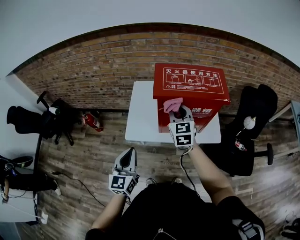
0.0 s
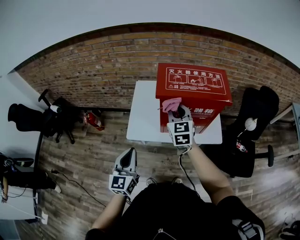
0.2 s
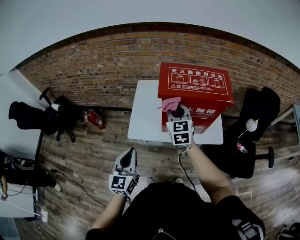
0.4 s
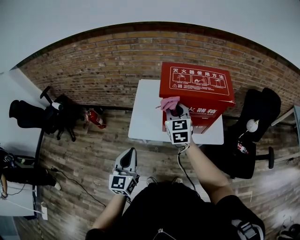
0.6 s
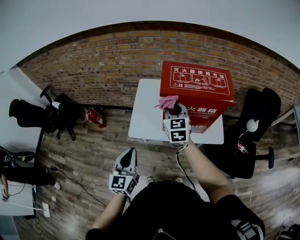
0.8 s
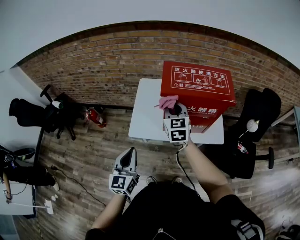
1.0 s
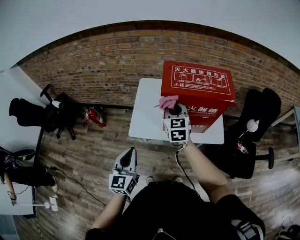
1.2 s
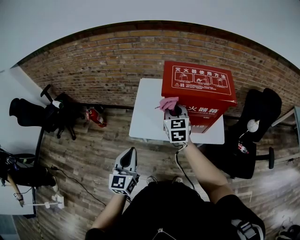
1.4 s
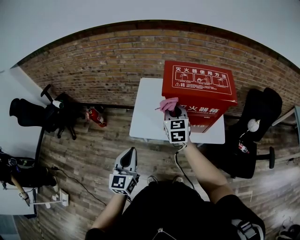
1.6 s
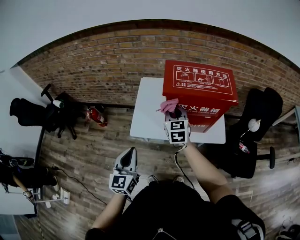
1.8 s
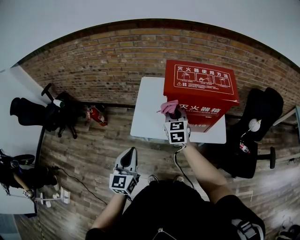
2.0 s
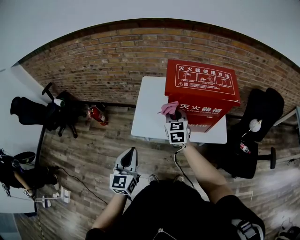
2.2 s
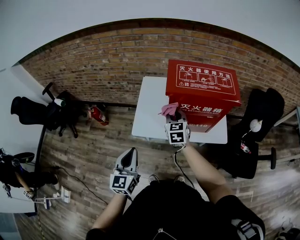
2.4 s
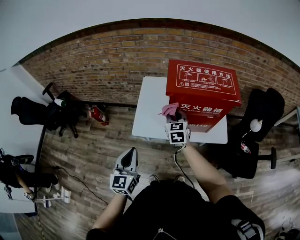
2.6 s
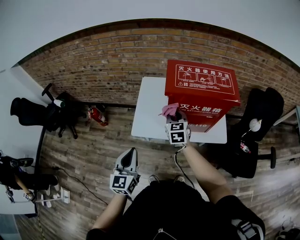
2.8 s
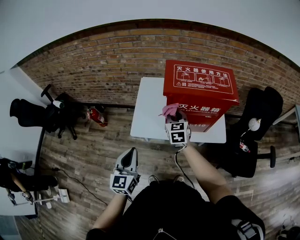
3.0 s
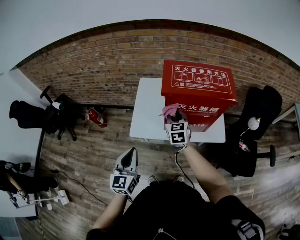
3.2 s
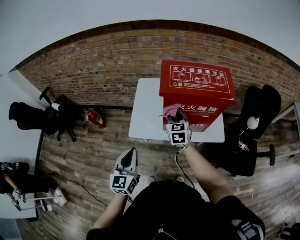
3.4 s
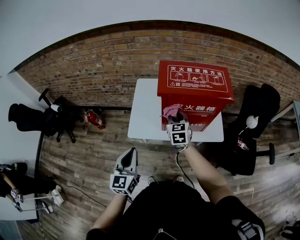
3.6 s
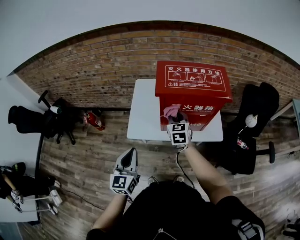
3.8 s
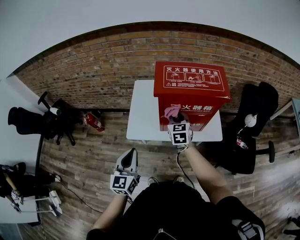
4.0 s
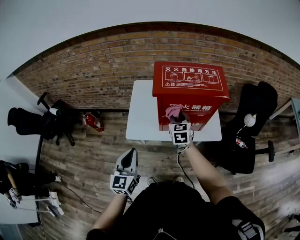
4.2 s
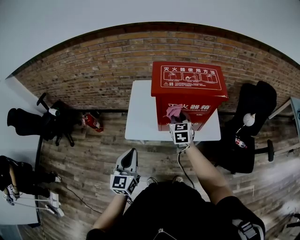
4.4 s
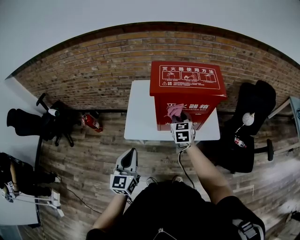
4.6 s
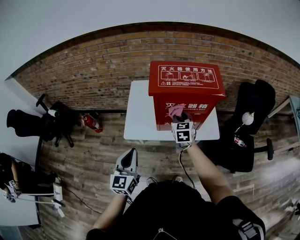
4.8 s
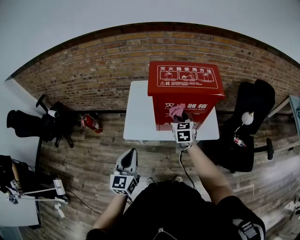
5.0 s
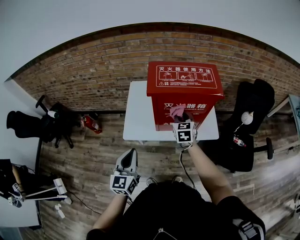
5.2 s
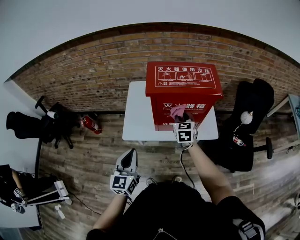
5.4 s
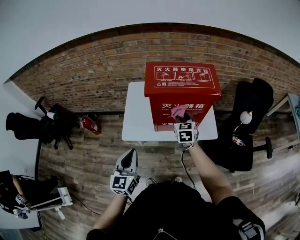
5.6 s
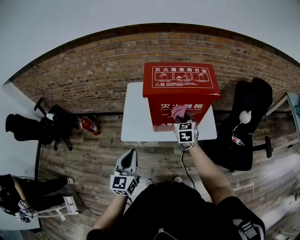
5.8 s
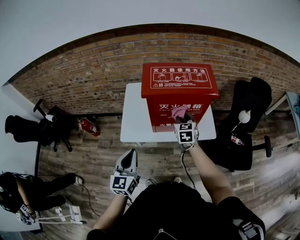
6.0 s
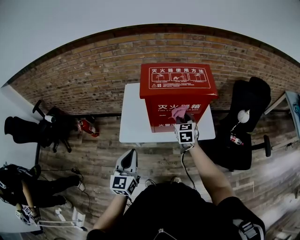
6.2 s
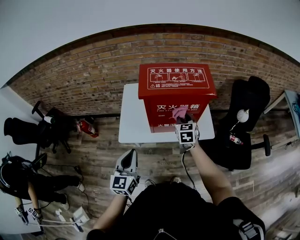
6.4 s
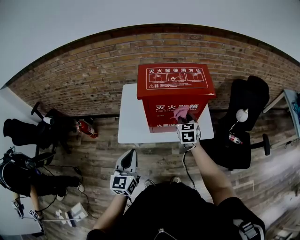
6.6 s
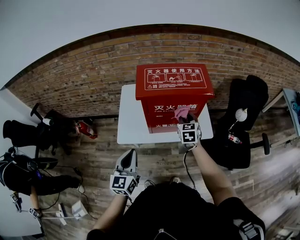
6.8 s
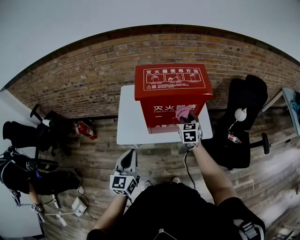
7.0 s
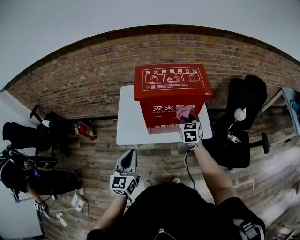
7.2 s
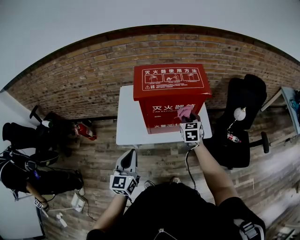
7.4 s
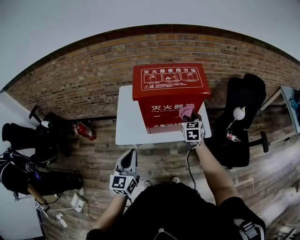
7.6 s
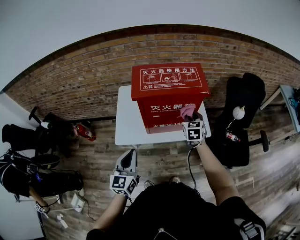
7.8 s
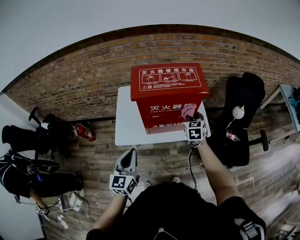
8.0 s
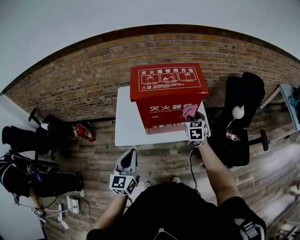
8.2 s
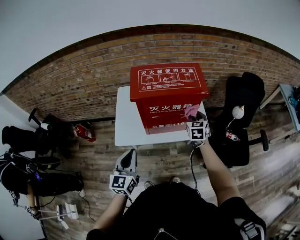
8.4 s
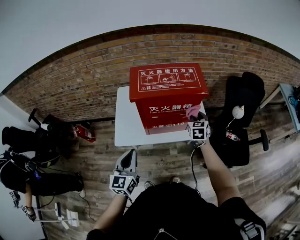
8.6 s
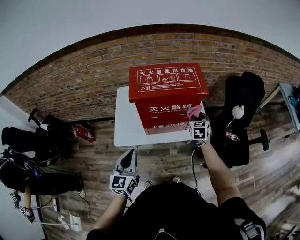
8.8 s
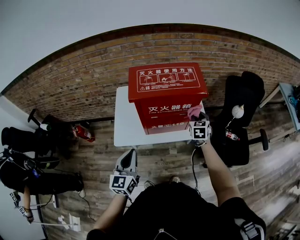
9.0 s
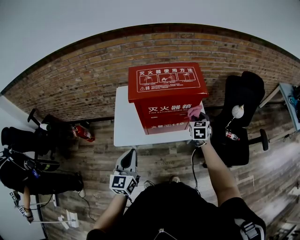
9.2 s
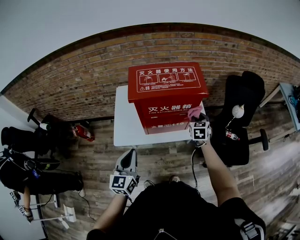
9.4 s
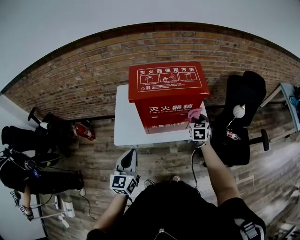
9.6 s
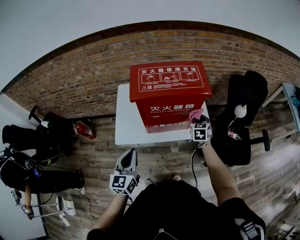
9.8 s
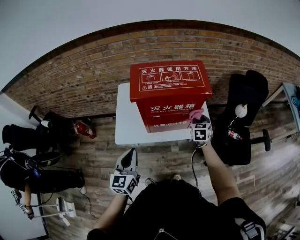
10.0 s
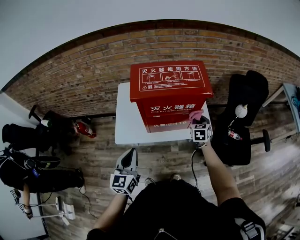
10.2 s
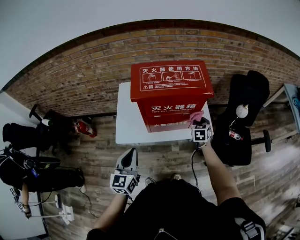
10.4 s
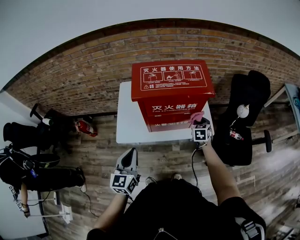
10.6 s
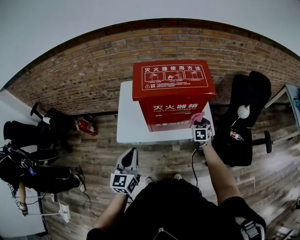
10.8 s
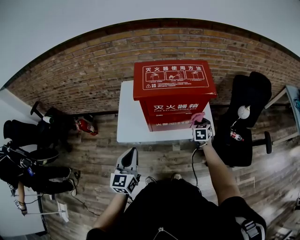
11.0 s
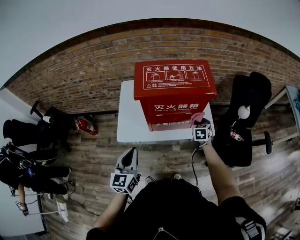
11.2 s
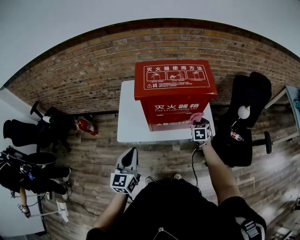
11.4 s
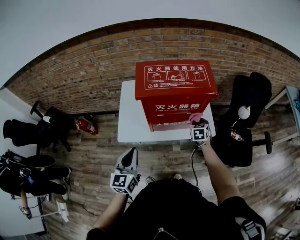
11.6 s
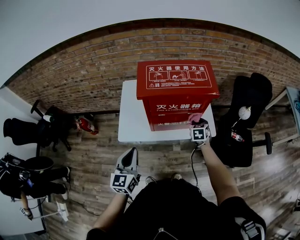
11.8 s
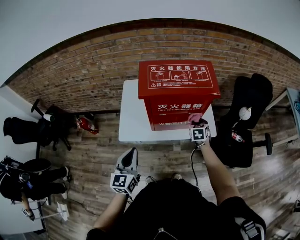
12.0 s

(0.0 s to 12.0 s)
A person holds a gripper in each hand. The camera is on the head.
0.0 s - 1.6 s: The right gripper moves to the left, about 5 cm.
1.6 s - 3.0 s: The right gripper travels downward by roughly 5 cm.
3.0 s - 4.4 s: The right gripper moves to the right, about 5 cm.
4.4 s - 6.0 s: The right gripper heads to the right, covering some 5 cm.
6.0 s - 7.6 s: The right gripper heads to the right, covering some 10 cm.
7.6 s - 9.0 s: The right gripper goes roughly 5 cm to the right.
9.0 s - 10.4 s: The right gripper shifts about 10 cm downward.
10.4 s - 12.0 s: The grippers make only small movements.

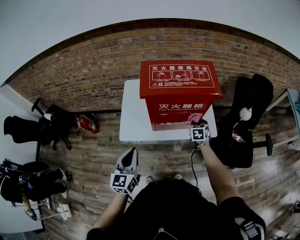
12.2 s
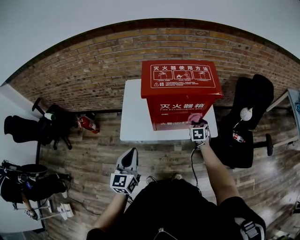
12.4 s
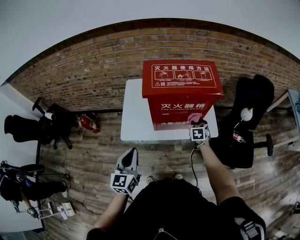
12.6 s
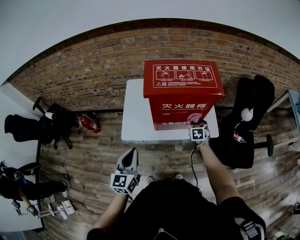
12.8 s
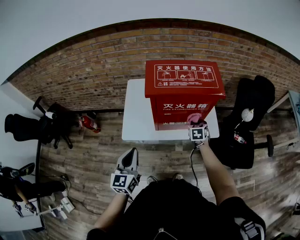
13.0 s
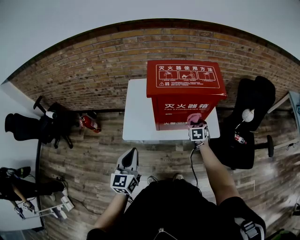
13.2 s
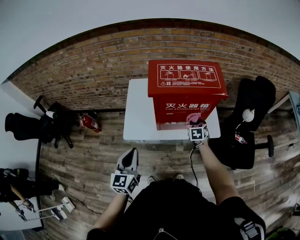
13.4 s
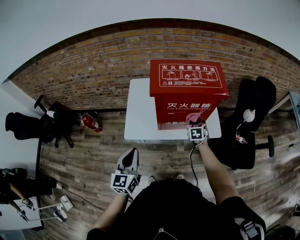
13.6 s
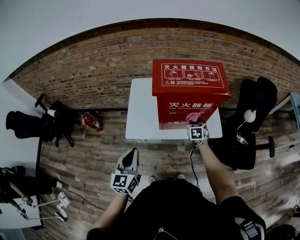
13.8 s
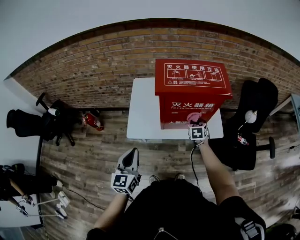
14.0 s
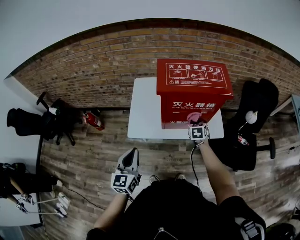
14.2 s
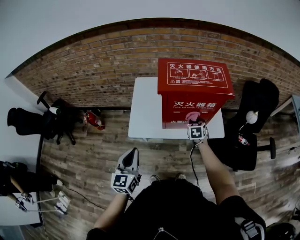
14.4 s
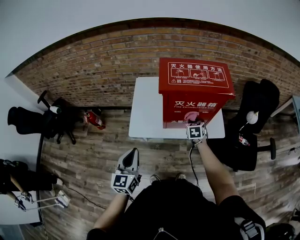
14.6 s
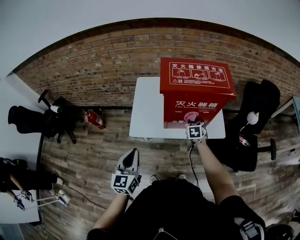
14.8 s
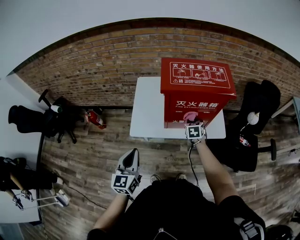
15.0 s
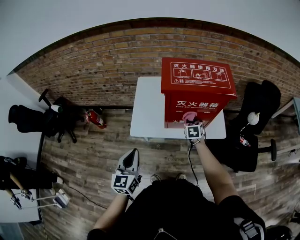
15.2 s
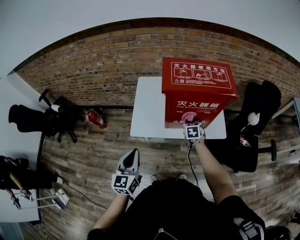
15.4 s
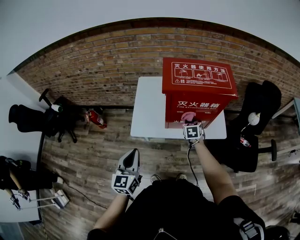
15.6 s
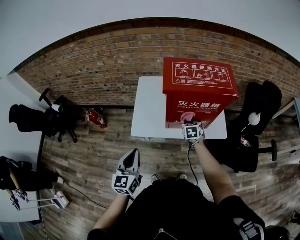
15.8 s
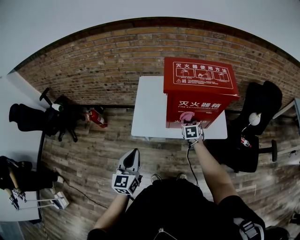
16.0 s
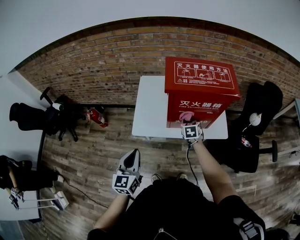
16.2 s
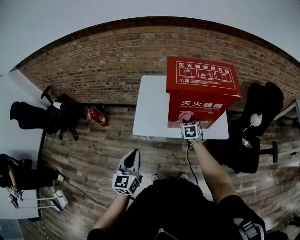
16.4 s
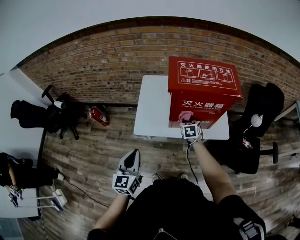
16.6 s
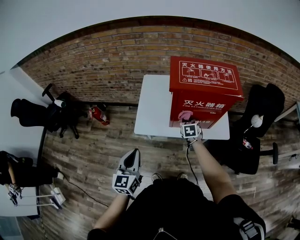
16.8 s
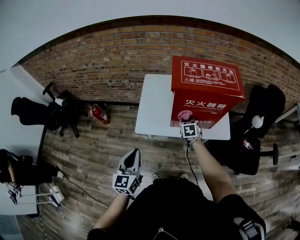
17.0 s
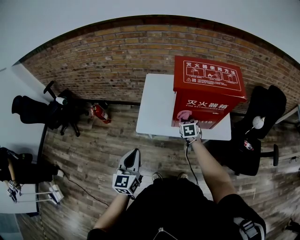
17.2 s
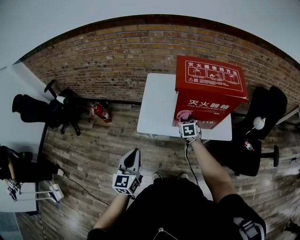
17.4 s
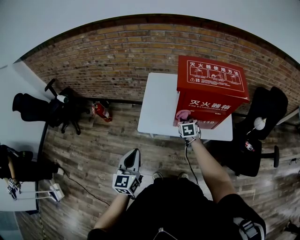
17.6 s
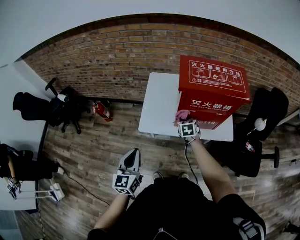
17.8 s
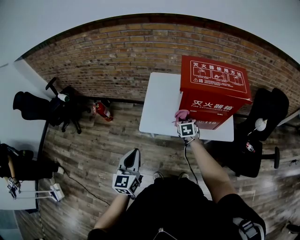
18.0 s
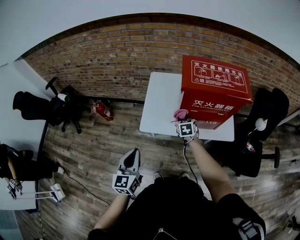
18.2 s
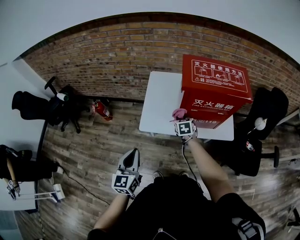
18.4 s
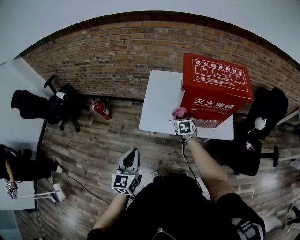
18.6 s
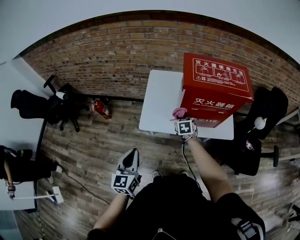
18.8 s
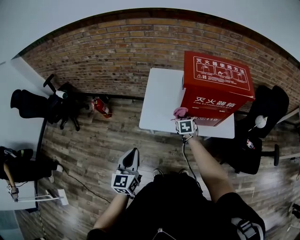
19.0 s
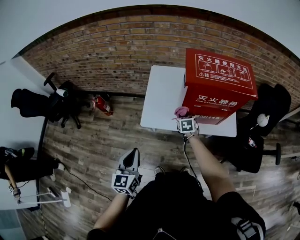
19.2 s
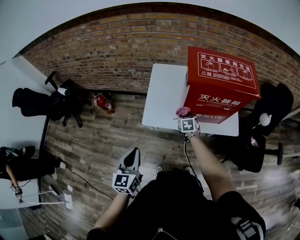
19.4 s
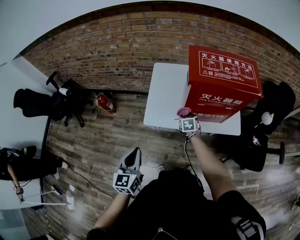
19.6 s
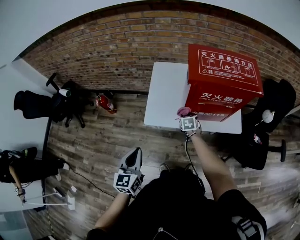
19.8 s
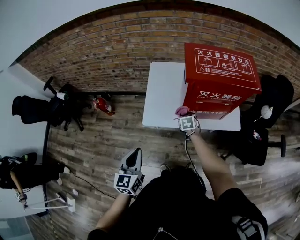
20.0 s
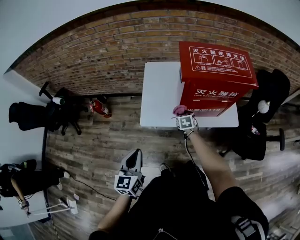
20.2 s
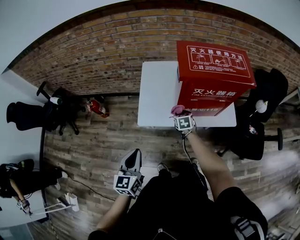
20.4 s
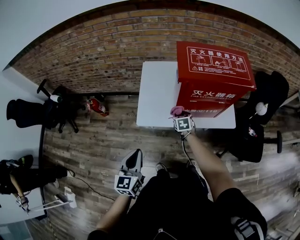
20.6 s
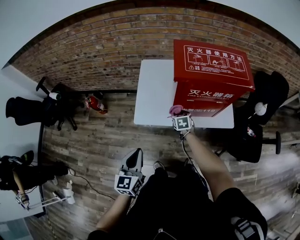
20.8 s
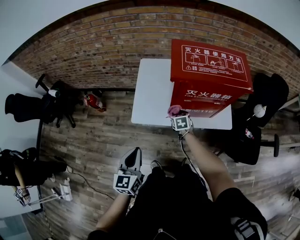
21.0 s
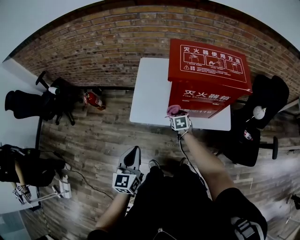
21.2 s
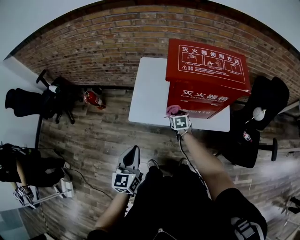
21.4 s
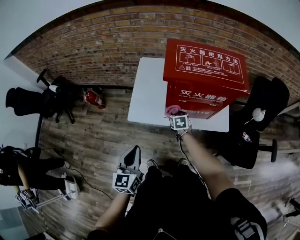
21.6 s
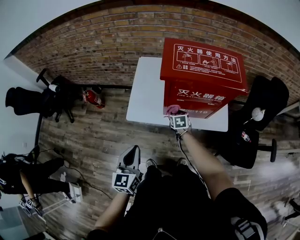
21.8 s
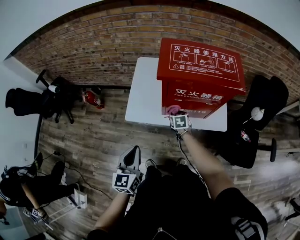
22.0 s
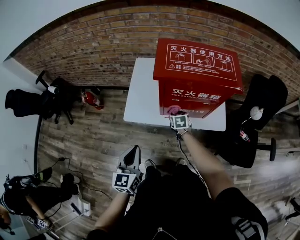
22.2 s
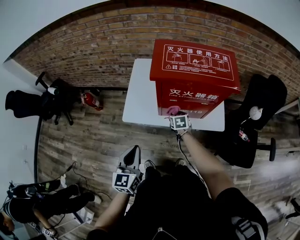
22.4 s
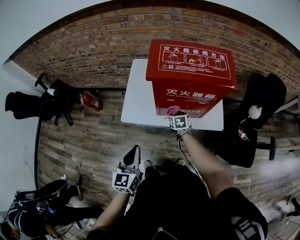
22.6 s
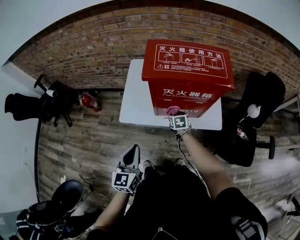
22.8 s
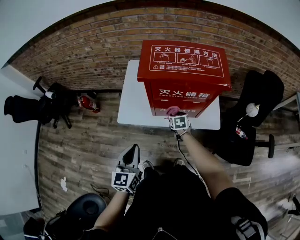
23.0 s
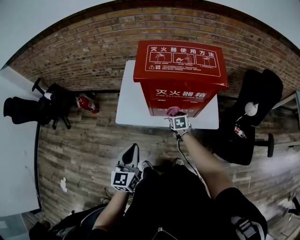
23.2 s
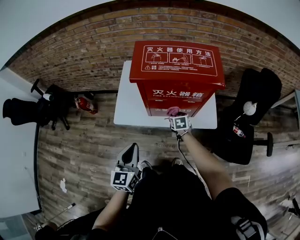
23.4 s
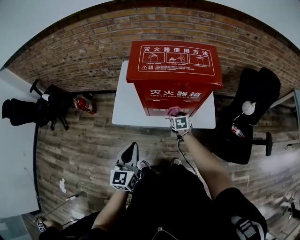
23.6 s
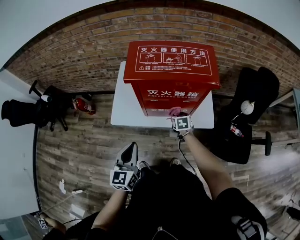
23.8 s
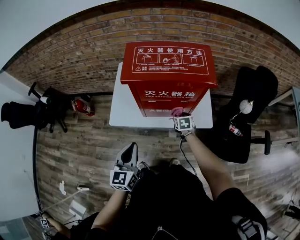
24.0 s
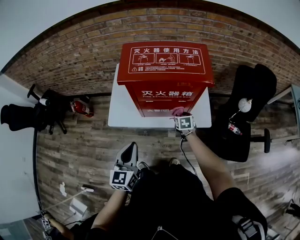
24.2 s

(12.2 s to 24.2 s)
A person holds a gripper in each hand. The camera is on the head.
12.2 s - 13.8 s: The right gripper is displaced to the left by approximately 5 cm.
13.8 s - 15.2 s: The right gripper goes roughly 5 cm to the left.
15.2 s - 16.6 s: The right gripper is displaced to the left by roughly 5 cm.
16.6 s - 18.2 s: The right gripper is displaced to the left by approximately 10 cm.
18.2 s - 19.8 s: The right gripper travels downward by roughly 10 cm.
19.8 s - 21.2 s: The left gripper shifts approximately 5 cm to the right.
21.2 s - 22.6 s: The grippers both shift to the right by approximately 10 cm.
22.6 s - 24.2 s: The left gripper goes about 10 cm to the right. Meanwhile the right gripper travels to the right by some 15 cm.
